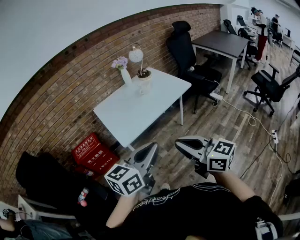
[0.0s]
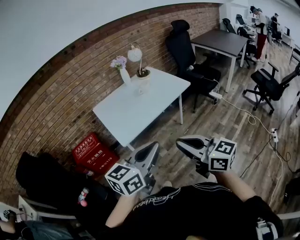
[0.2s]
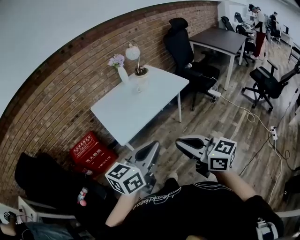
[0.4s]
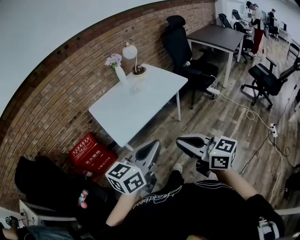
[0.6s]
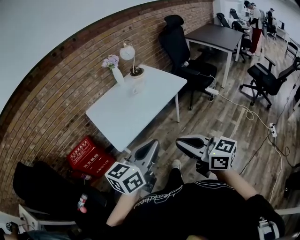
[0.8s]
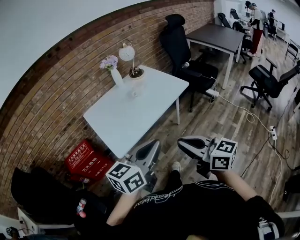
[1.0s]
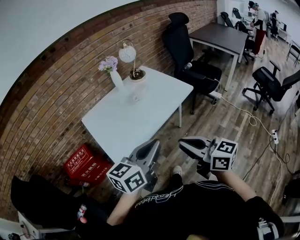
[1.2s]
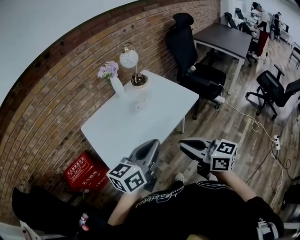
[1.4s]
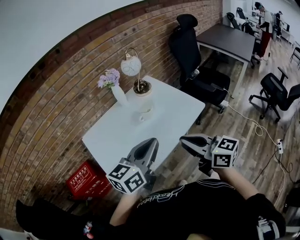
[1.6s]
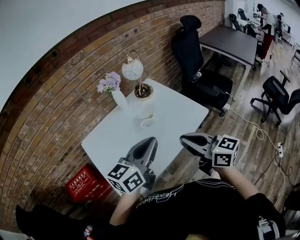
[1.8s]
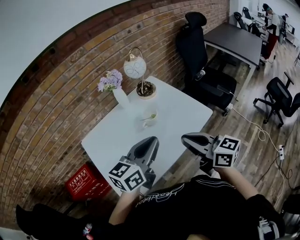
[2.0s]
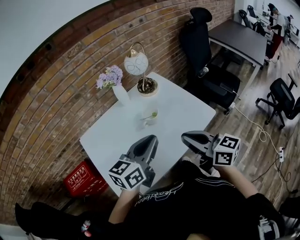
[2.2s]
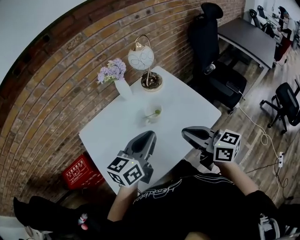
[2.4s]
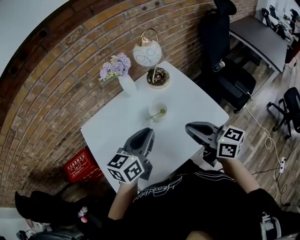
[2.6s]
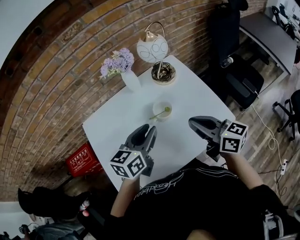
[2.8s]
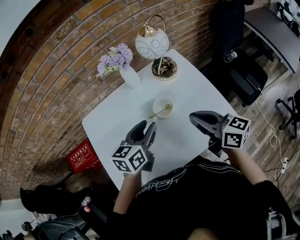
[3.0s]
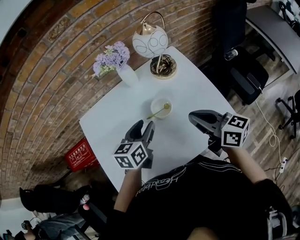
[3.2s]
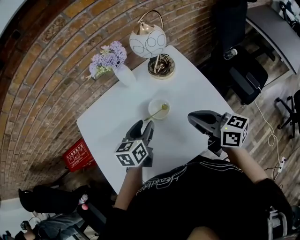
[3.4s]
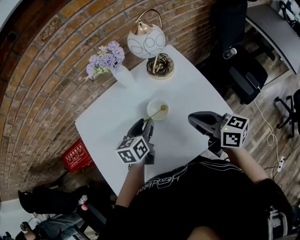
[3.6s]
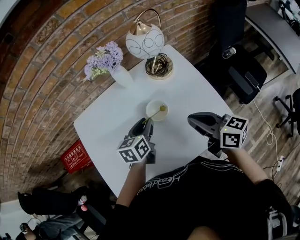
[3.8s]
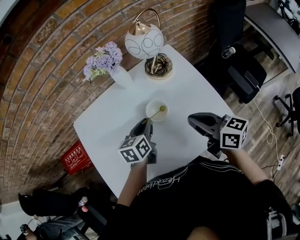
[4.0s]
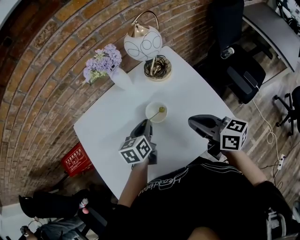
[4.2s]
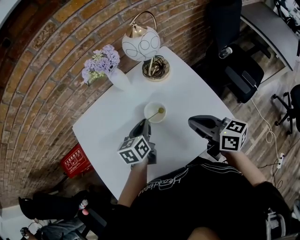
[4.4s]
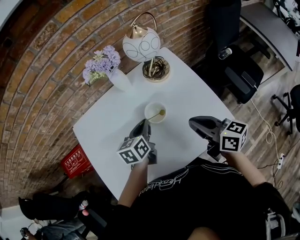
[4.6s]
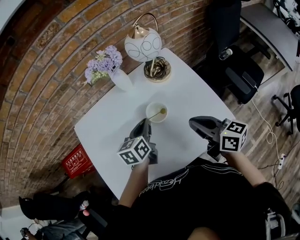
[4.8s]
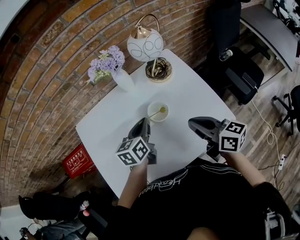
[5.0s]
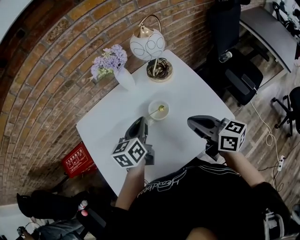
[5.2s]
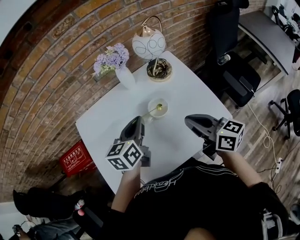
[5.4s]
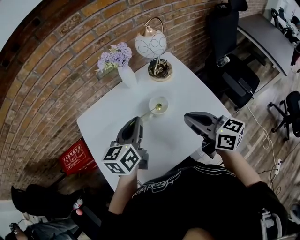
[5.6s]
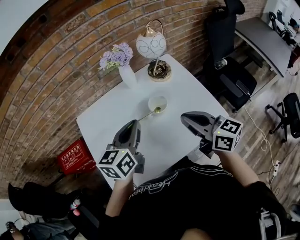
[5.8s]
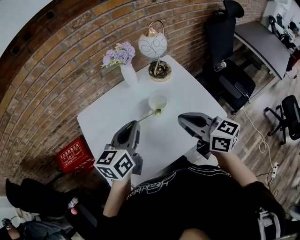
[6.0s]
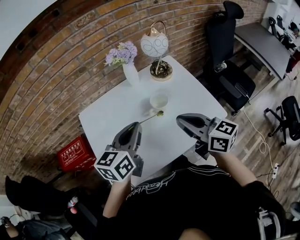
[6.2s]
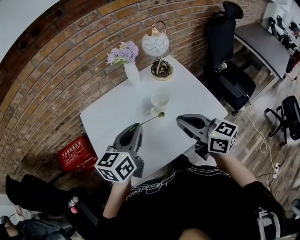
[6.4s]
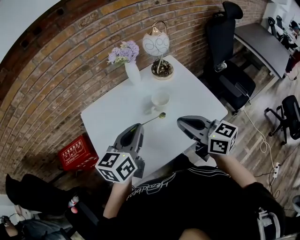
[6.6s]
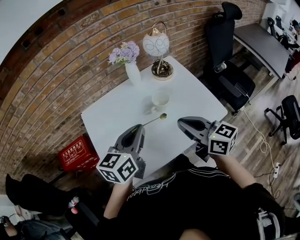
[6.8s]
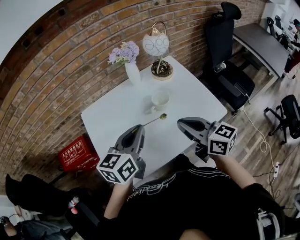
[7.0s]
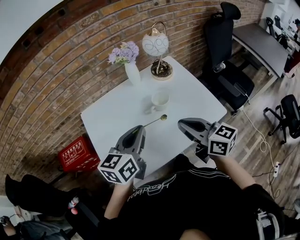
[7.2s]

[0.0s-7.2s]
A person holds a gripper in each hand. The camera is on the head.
0.0s to 1.4s: The two grippers go roughly 30 cm forward.
1.4s to 2.8s: The grippers both shift forward by about 35 cm. The left gripper changes its angle by roughly 20 degrees, and opens up.
2.8s to 4.4s: The left gripper moves downward and forward, approximately 15 cm, and swivels some 20 degrees. Meanwhile the right gripper heads downward, covering about 5 cm.
4.4s to 5.8s: The right gripper goes about 10 cm upward, to the left and backward, while the left gripper shifts approximately 20 cm upward and backward.
5.8s to 7.2s: The two grippers go some 5 cm backward.

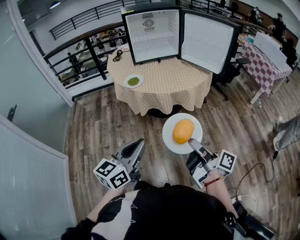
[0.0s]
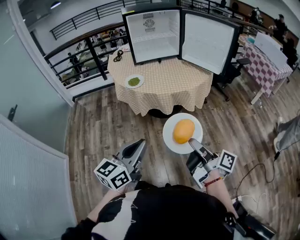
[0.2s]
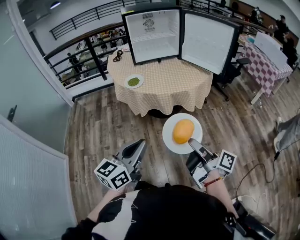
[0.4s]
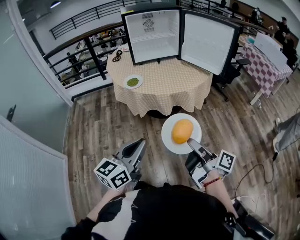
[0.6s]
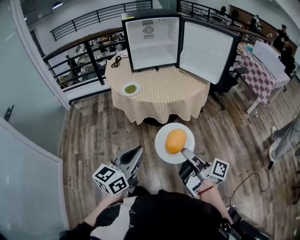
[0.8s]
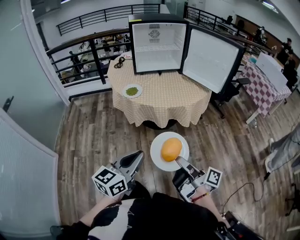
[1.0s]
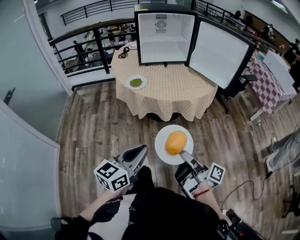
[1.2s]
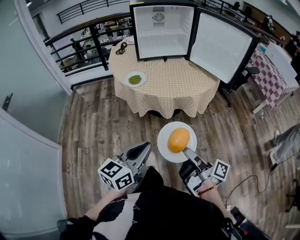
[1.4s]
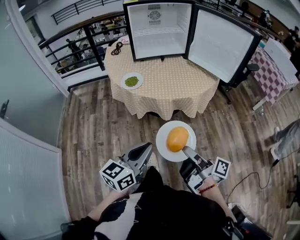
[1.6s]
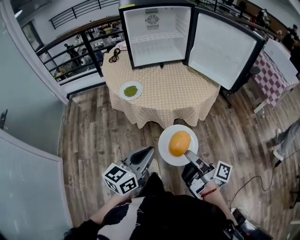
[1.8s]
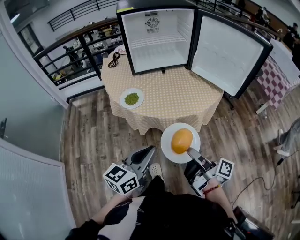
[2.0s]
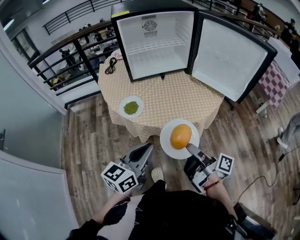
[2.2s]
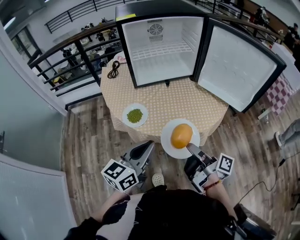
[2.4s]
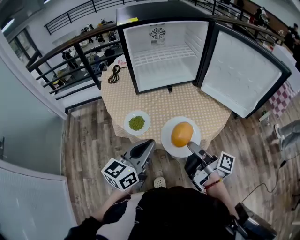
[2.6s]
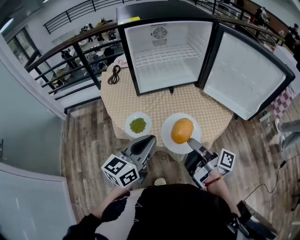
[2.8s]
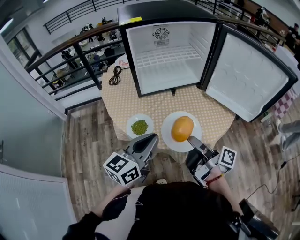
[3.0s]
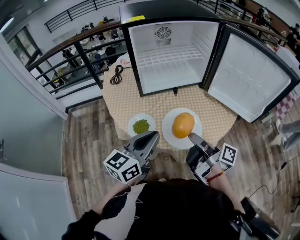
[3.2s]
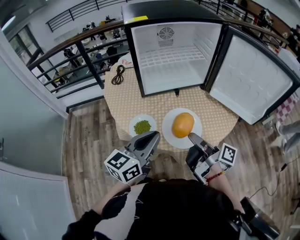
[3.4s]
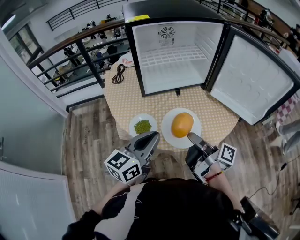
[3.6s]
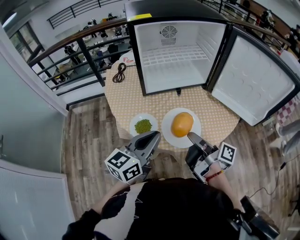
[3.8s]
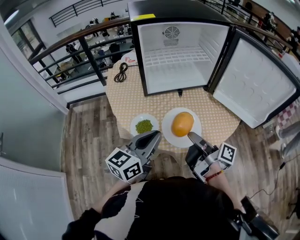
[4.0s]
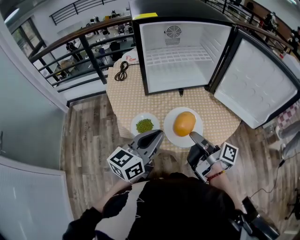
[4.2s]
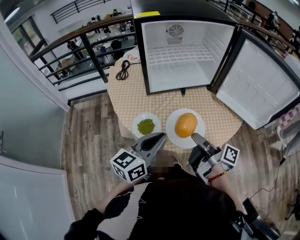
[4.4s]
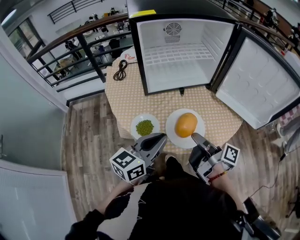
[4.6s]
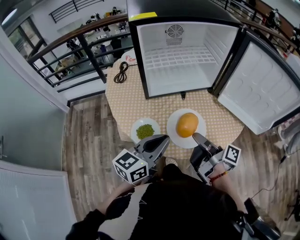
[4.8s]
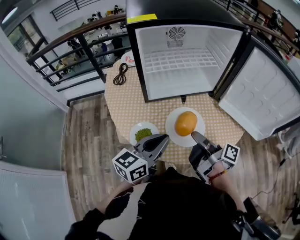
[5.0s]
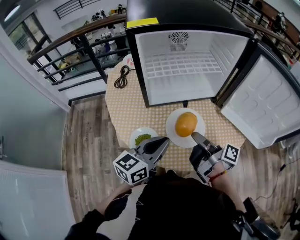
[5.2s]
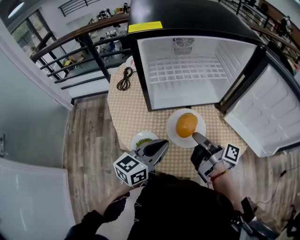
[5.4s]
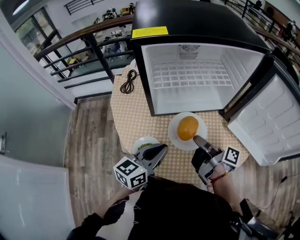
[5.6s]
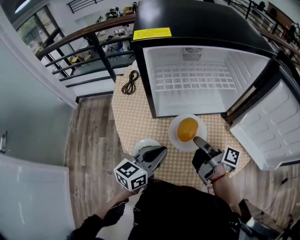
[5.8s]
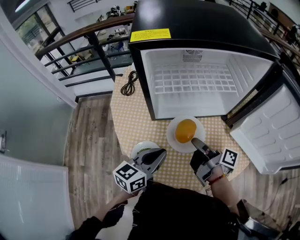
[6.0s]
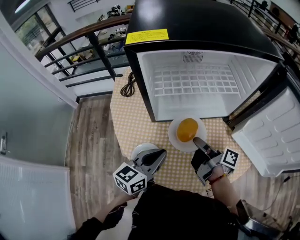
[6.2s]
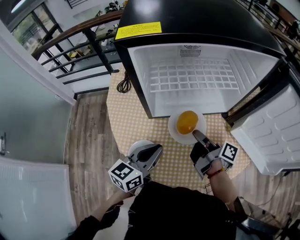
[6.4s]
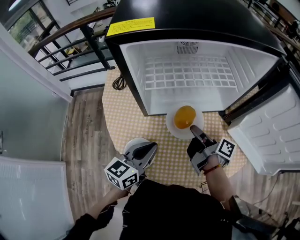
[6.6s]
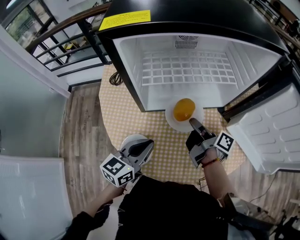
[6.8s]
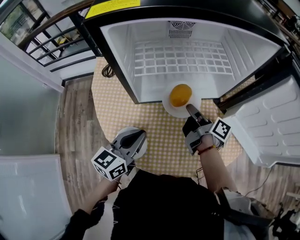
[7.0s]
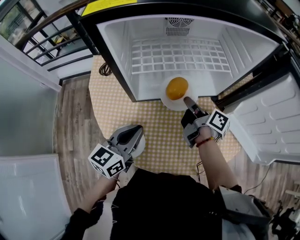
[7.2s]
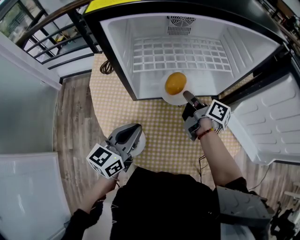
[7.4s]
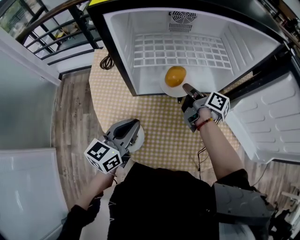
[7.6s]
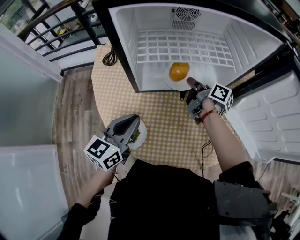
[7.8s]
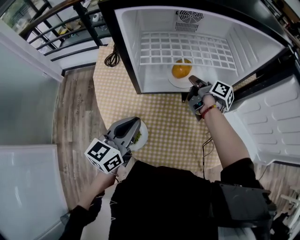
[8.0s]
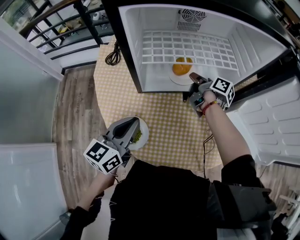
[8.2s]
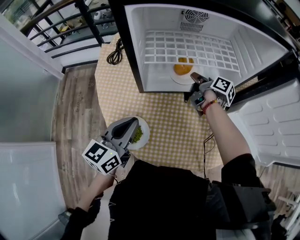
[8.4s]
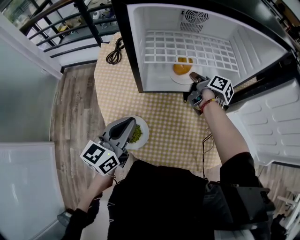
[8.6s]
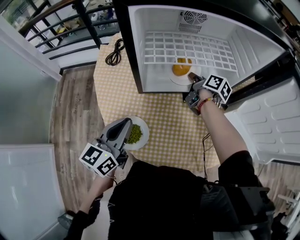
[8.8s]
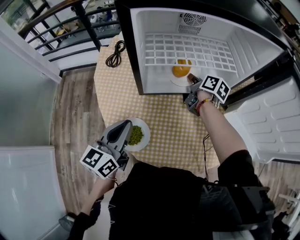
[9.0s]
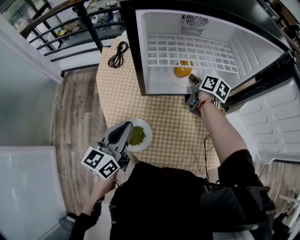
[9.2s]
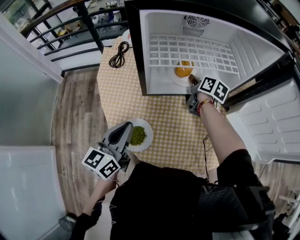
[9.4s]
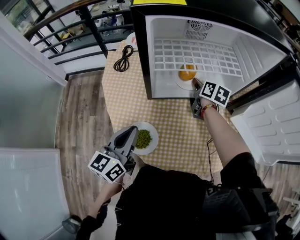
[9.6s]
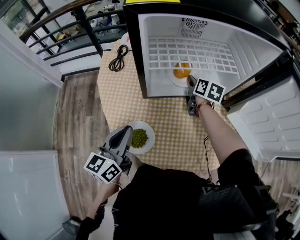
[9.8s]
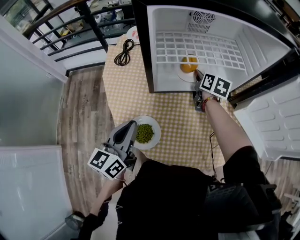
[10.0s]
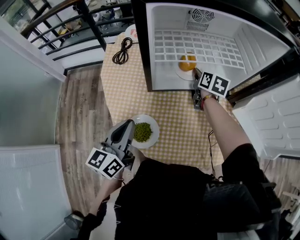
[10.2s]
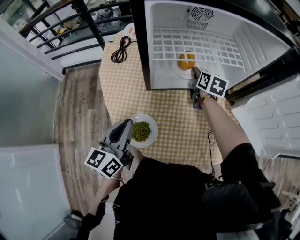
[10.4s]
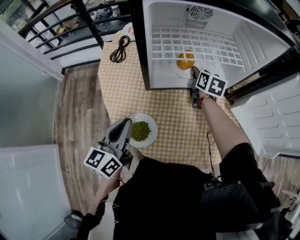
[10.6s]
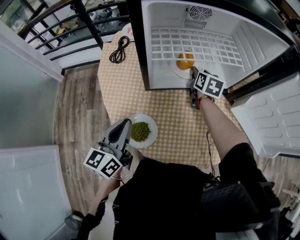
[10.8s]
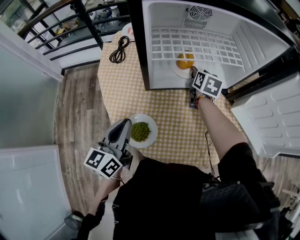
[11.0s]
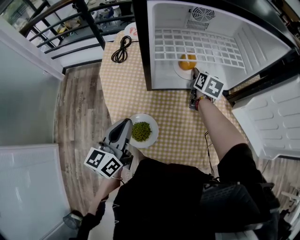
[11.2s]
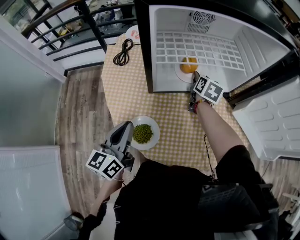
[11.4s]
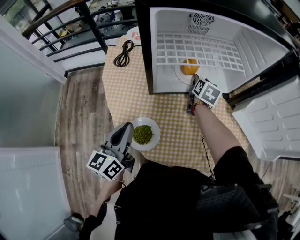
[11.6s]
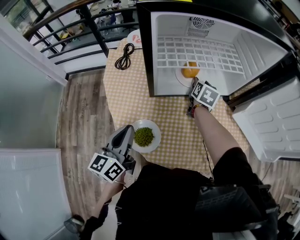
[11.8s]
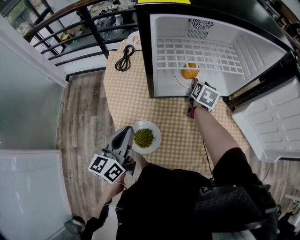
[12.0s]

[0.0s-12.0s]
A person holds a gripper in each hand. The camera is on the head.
0.0s to 1.6s: The two grippers go about 10 cm forward.
1.6s to 3.0s: The two grippers go about 35 cm forward.
3.0s to 4.4s: There are only small adjustments of the grippers.
4.4s to 6.0s: The left gripper is displaced forward and downward by some 15 cm. Meanwhile the right gripper goes about 20 cm forward.
6.0s to 7.6s: The right gripper travels forward by roughly 15 cm.
7.6s to 9.0s: The right gripper shifts roughly 5 cm forward, and rotates approximately 30 degrees, while the left gripper is displaced to the left by about 5 cm.
9.0s to 10.4s: The right gripper rotates some 30 degrees, and opens up.
10.4s to 12.0s: The grippers stay close to where they were, moving slightly.

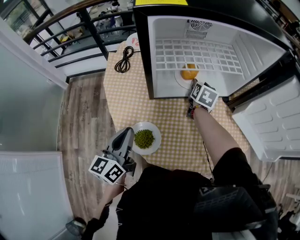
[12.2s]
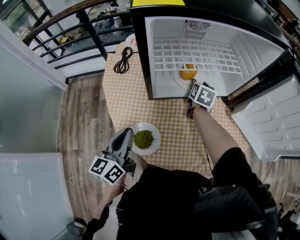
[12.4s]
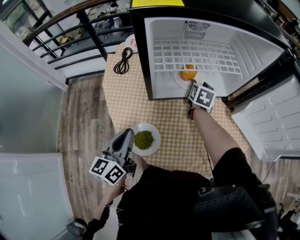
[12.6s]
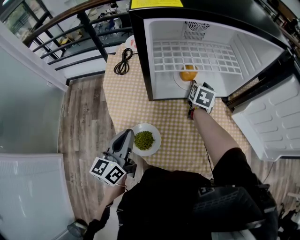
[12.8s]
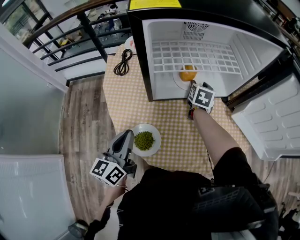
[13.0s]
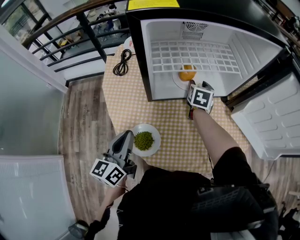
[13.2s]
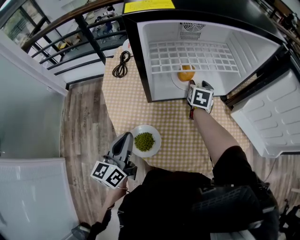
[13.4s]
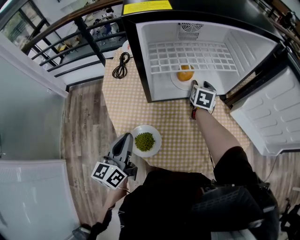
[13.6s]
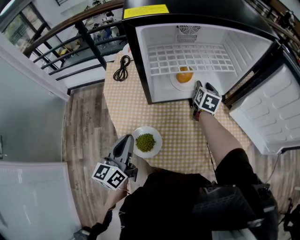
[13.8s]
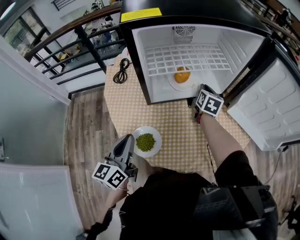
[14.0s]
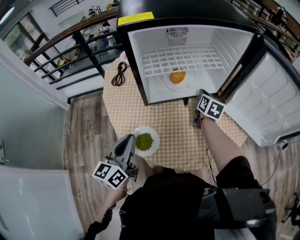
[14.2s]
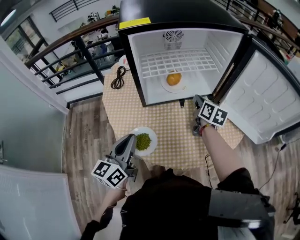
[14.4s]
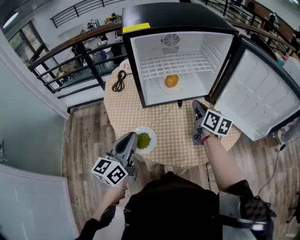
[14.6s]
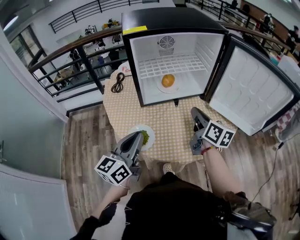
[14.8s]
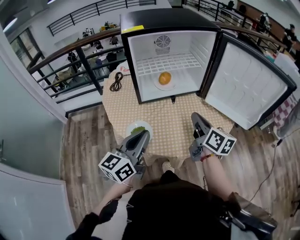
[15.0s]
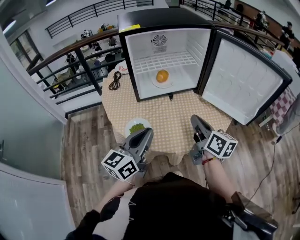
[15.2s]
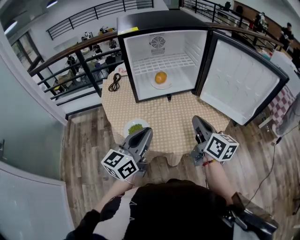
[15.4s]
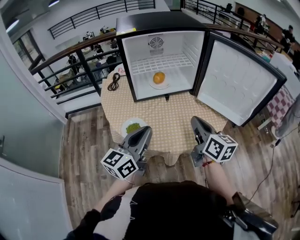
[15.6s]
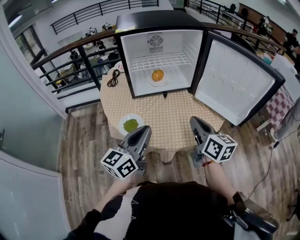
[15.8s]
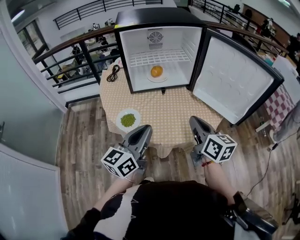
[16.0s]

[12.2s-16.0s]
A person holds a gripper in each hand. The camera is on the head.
12.2s to 13.4s: There are only small adjustments of the grippers.
13.4s to 14.8s: The right gripper goes about 30 cm backward and upward, changes its angle by about 40 degrees, and closes its fingers. Meanwhile the left gripper heads to the right, upward and backward, covering some 15 cm.
14.8s to 16.0s: The left gripper moves to the right and backward, approximately 15 cm; the right gripper travels backward and to the right by roughly 15 cm.

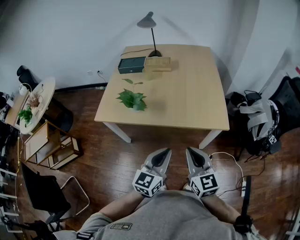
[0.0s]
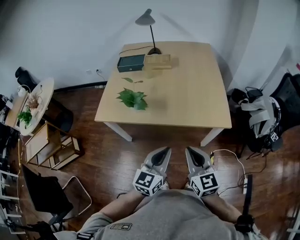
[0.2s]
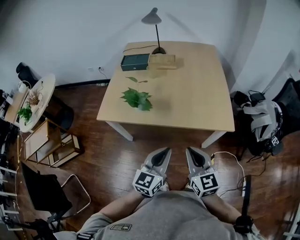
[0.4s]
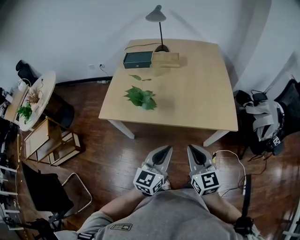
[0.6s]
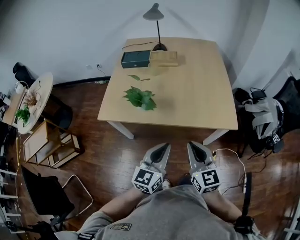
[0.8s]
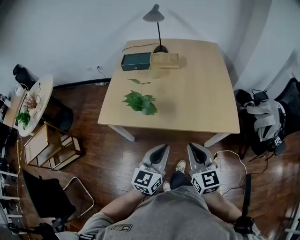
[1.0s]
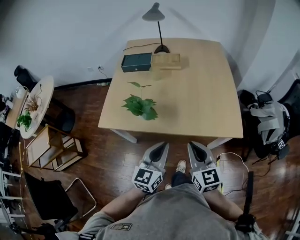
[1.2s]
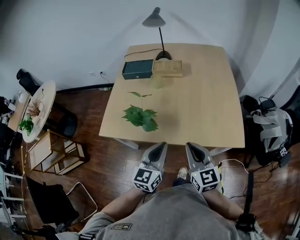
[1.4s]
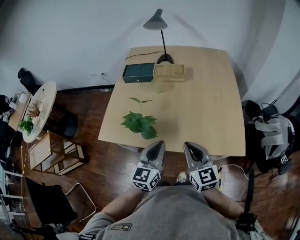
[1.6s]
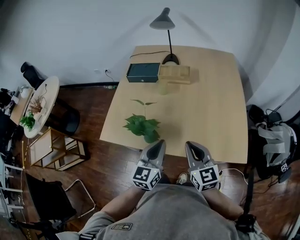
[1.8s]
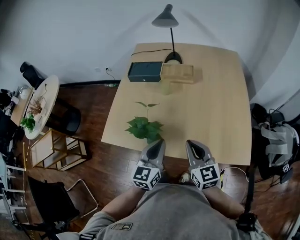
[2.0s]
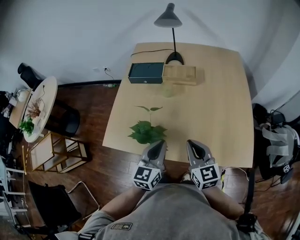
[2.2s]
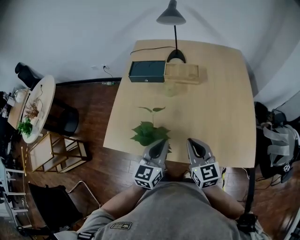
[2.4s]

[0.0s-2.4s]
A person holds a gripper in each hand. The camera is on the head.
0.0s to 1.2s: The grippers both shift forward and to the left by approximately 15 cm.
1.2s to 2.4s: Both grippers move forward, approximately 20 cm.
